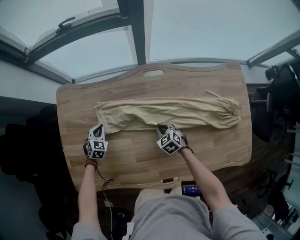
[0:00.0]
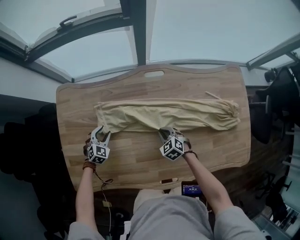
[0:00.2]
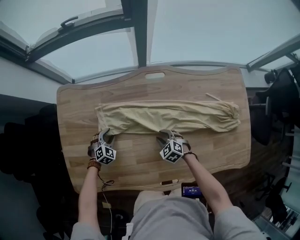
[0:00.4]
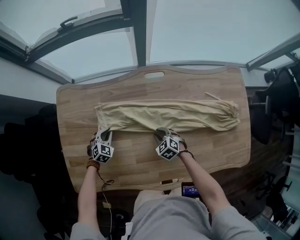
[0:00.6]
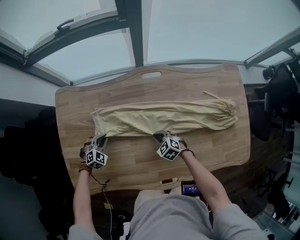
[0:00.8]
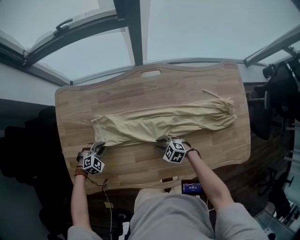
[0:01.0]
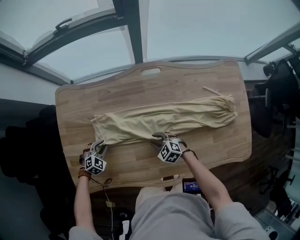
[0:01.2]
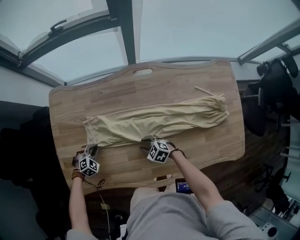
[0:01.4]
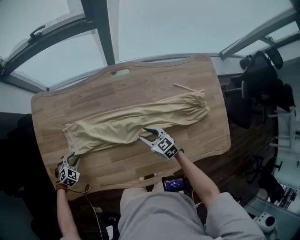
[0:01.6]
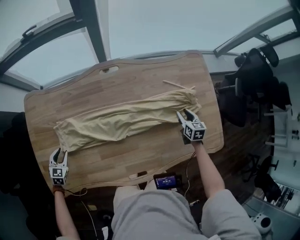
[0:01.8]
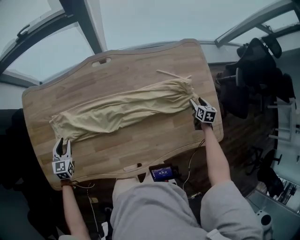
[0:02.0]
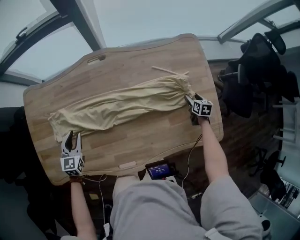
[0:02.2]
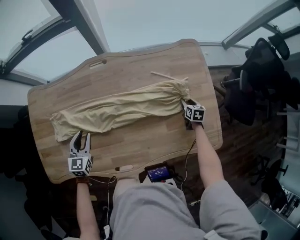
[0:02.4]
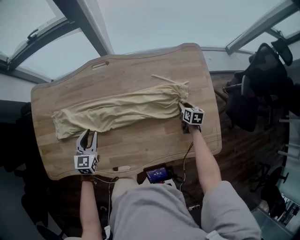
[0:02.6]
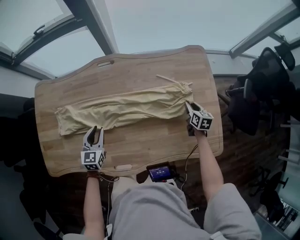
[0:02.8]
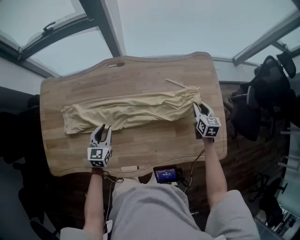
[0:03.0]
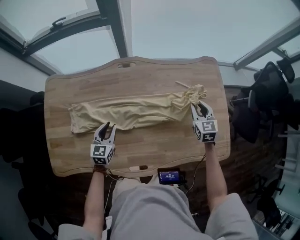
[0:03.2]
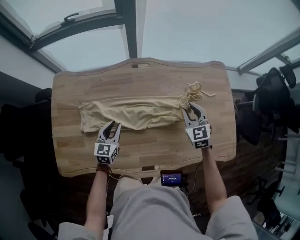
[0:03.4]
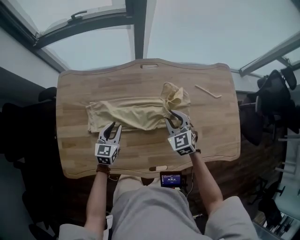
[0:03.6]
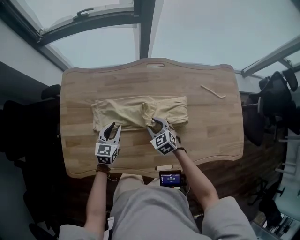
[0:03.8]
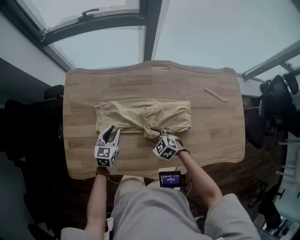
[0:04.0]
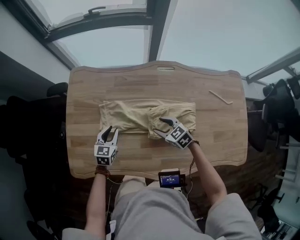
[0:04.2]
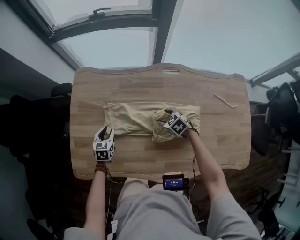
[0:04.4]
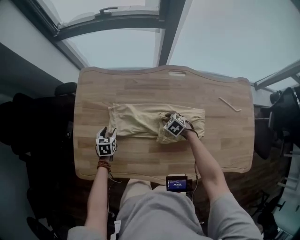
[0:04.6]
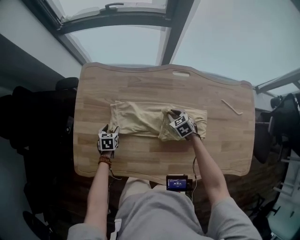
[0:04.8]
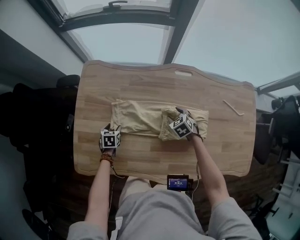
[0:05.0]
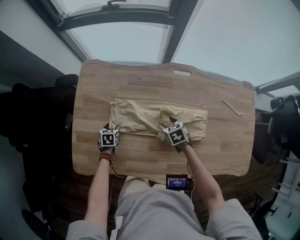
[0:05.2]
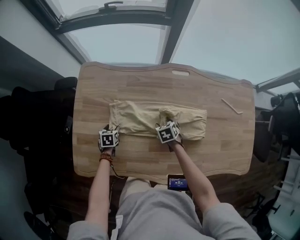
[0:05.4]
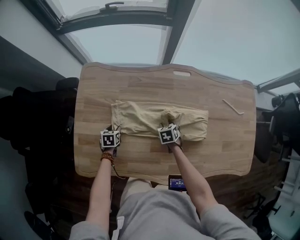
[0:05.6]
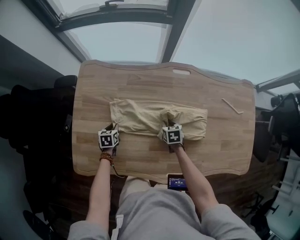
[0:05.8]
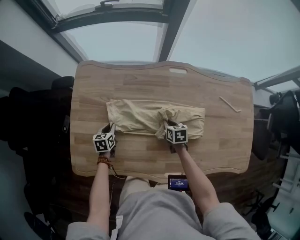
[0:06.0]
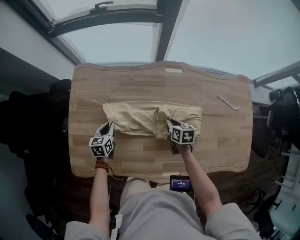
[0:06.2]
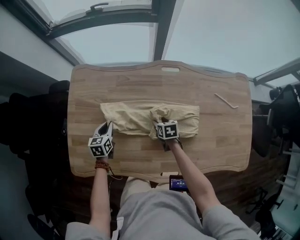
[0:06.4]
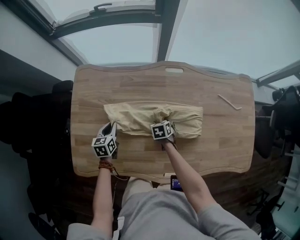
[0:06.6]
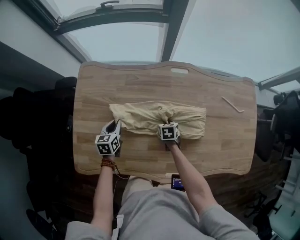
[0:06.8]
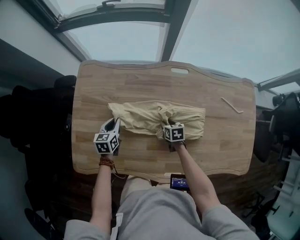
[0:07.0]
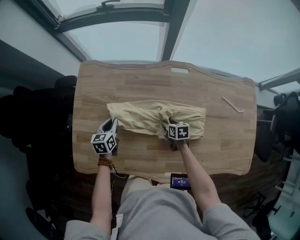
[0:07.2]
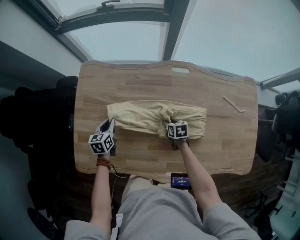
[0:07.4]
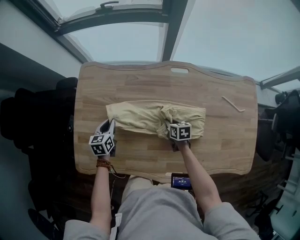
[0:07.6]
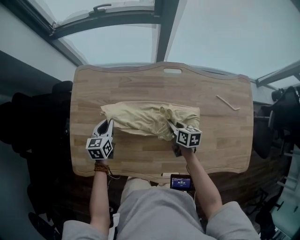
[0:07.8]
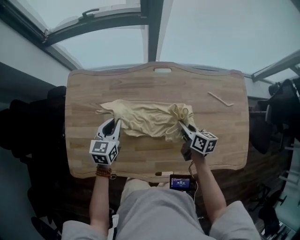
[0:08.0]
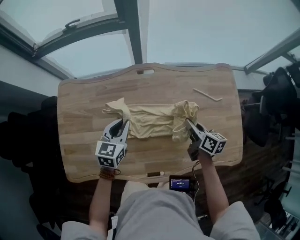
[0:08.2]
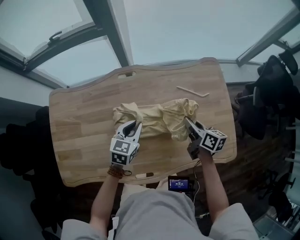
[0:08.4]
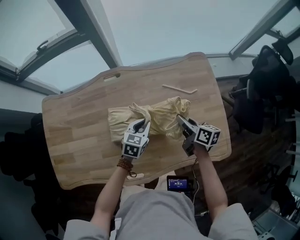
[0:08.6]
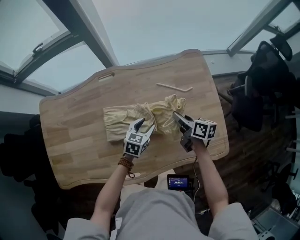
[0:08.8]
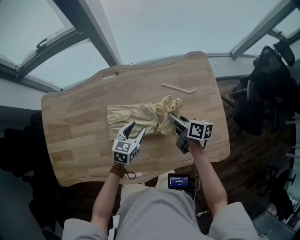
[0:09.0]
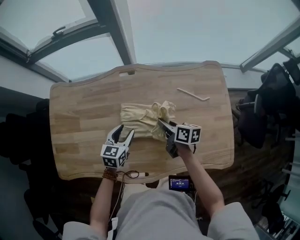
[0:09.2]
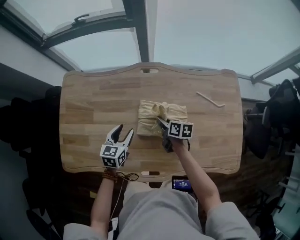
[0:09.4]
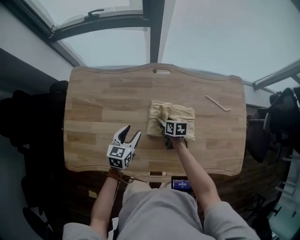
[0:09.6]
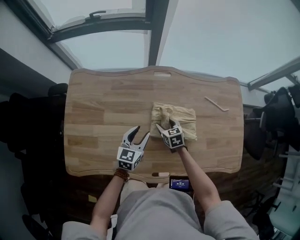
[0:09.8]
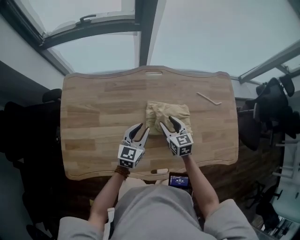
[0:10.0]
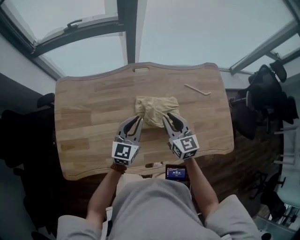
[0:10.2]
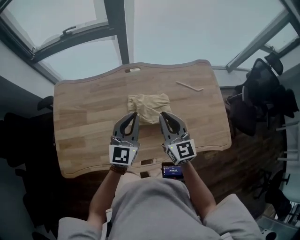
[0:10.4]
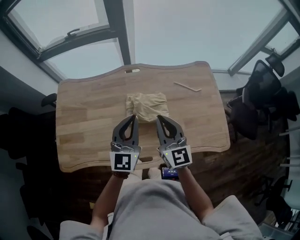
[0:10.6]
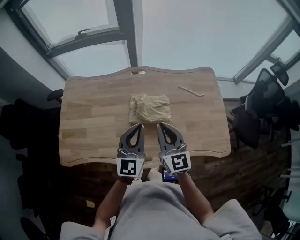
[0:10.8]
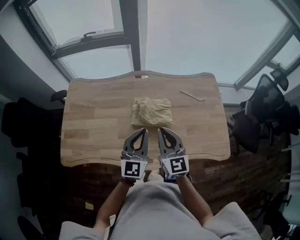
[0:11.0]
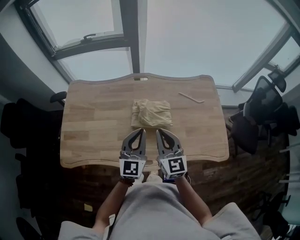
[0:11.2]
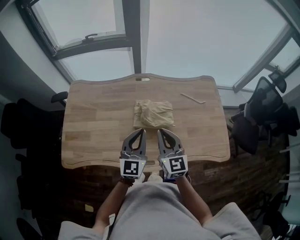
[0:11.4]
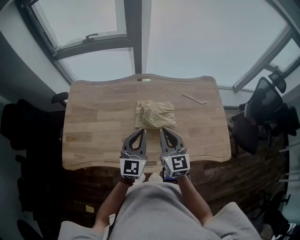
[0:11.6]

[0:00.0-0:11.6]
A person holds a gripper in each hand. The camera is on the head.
0:00.0 to 0:01.4: The right gripper shifts about 10 cm backward and to the left, rotates approximately 20 degrees, and opens its fingers, while the left gripper moves backward, about 10 cm, rotates about 30 degrees, and opens and closes again.
0:01.4 to 0:02.8: The right gripper swings up and down, roughly 10 cm each way, with 2 reversals, swivels about 70 degrees, and opens and closes again. The left gripper changes place by roughly 35 cm, and angles its fingers upward, by some 30 degrees.
0:02.8 to 0:04.4: The left gripper changes place by some 35 cm; the right gripper moves up and down over approximately 20 cm, changing direction 3 times, rolls counterclockwise, seen from behind, by approximately 50 degrees, and opens.
0:04.4 to 0:05.8: The left gripper shifts some 10 cm downward, and opens and closes again. The right gripper changes its angle by about 40 degrees, and closes.
0:05.8 to 0:07.2: The right gripper opens, then closes again; the left gripper is displaced upward by about 10 cm.
0:07.2 to 0:08.8: Both grippers are carried about 50 cm. The left gripper swivels some 40 degrees, and opens up. The right gripper turns by roughly 40 degrees, and closes its fingers.
0:08.8 to 0:10.2: The left gripper shifts roughly 30 cm to the left and upward, swivels about 30 degrees, and closes. The right gripper shifts some 30 cm to the left, rotates around the line of its fingers by about 50 degrees, counterclockwise from behind, and opens and closes again.
0:10.2 to 0:11.6: Both grippers travel together backward and upward, approximately 15 cm.

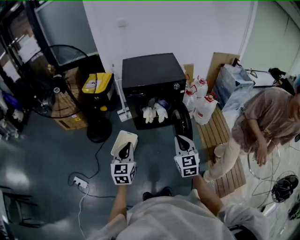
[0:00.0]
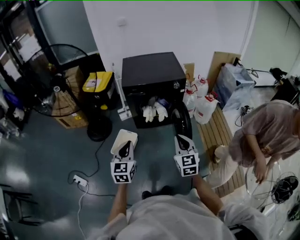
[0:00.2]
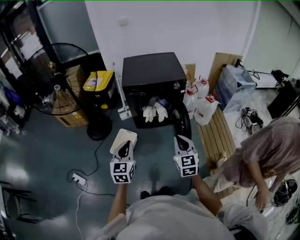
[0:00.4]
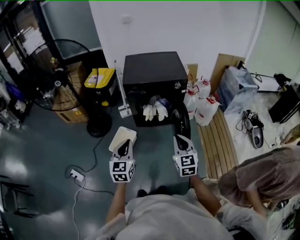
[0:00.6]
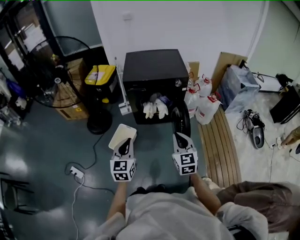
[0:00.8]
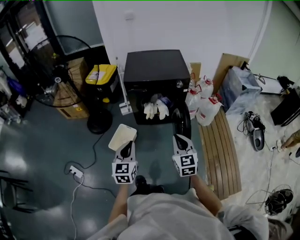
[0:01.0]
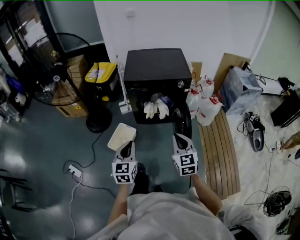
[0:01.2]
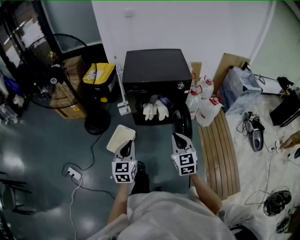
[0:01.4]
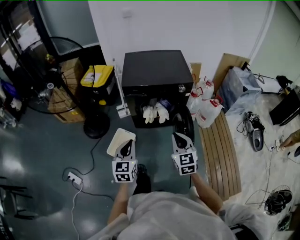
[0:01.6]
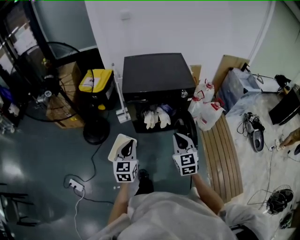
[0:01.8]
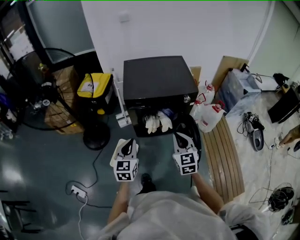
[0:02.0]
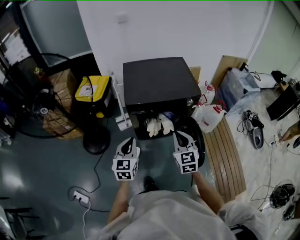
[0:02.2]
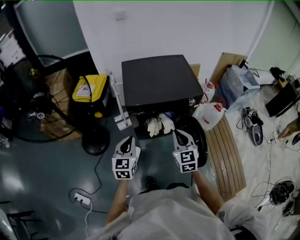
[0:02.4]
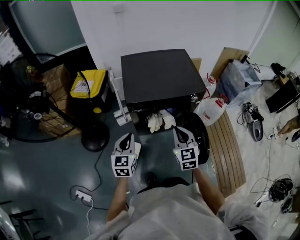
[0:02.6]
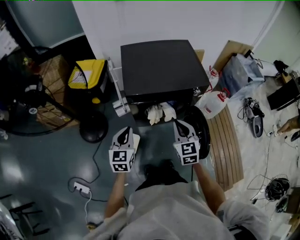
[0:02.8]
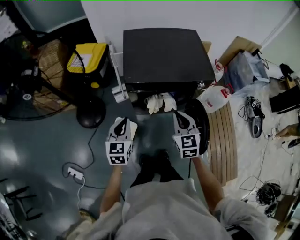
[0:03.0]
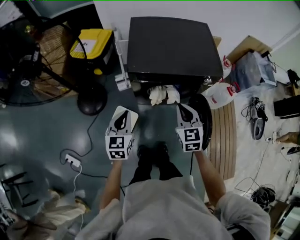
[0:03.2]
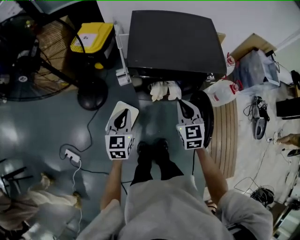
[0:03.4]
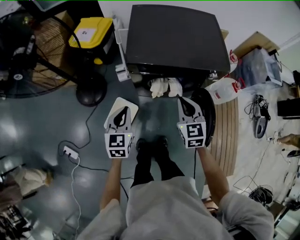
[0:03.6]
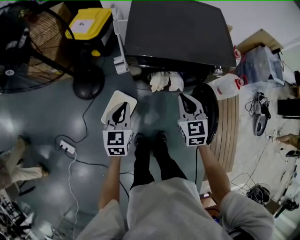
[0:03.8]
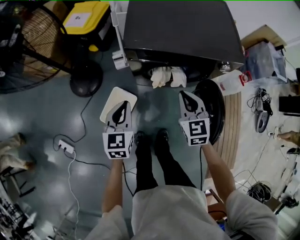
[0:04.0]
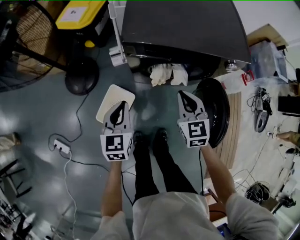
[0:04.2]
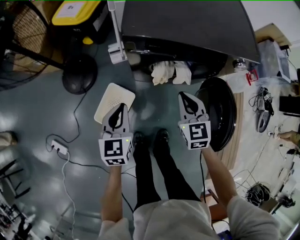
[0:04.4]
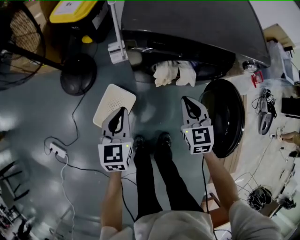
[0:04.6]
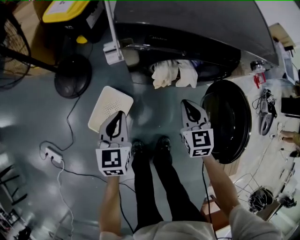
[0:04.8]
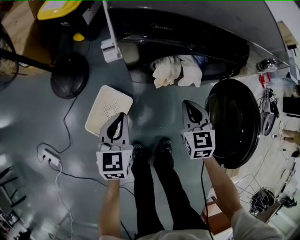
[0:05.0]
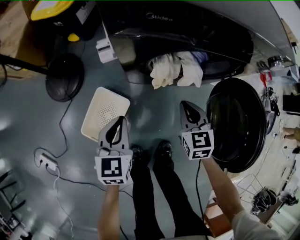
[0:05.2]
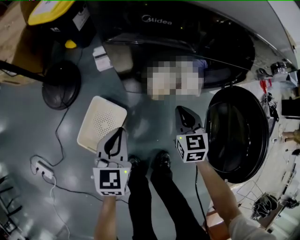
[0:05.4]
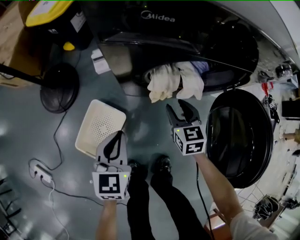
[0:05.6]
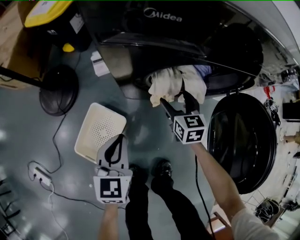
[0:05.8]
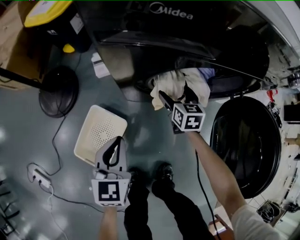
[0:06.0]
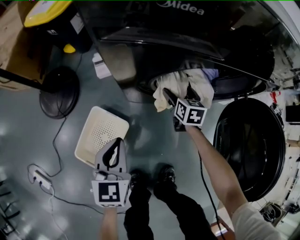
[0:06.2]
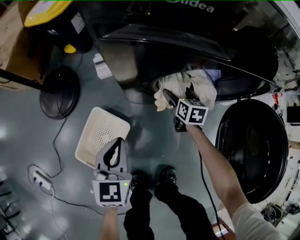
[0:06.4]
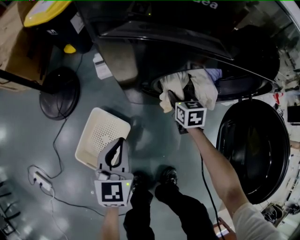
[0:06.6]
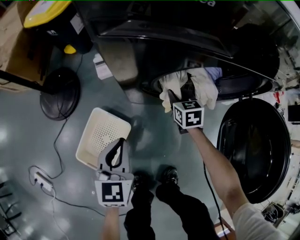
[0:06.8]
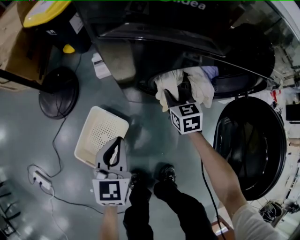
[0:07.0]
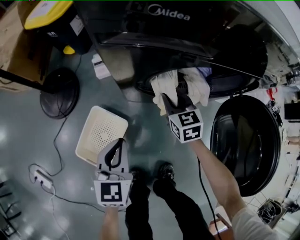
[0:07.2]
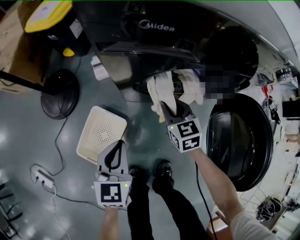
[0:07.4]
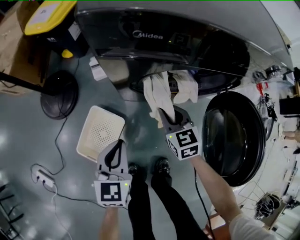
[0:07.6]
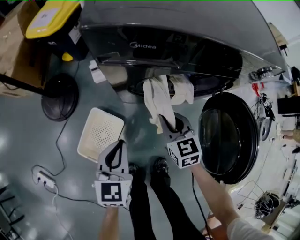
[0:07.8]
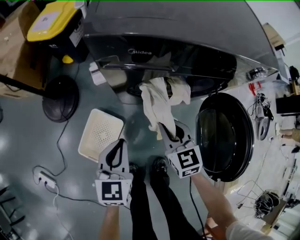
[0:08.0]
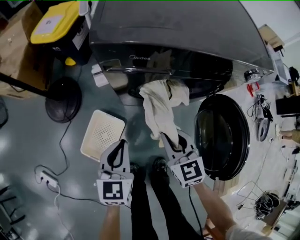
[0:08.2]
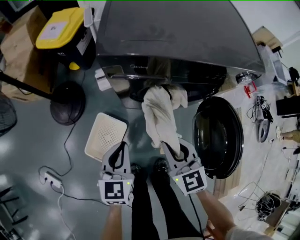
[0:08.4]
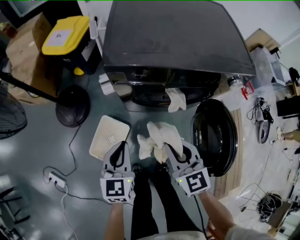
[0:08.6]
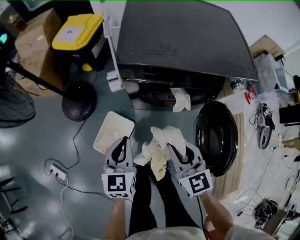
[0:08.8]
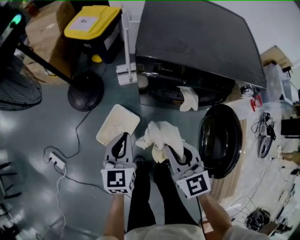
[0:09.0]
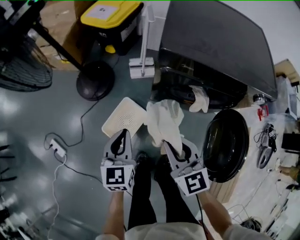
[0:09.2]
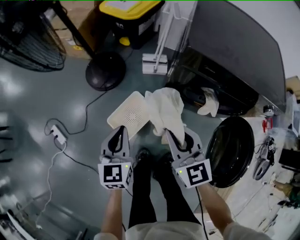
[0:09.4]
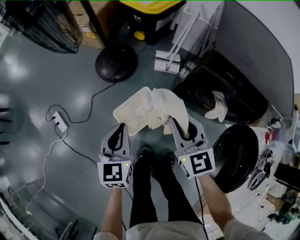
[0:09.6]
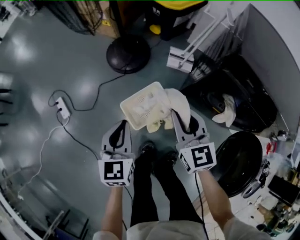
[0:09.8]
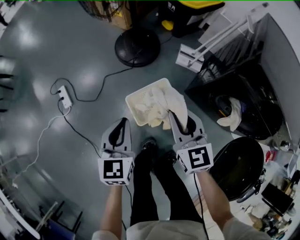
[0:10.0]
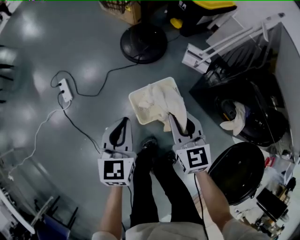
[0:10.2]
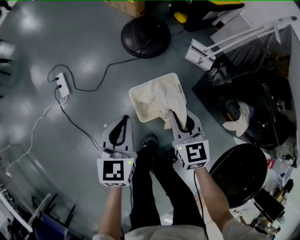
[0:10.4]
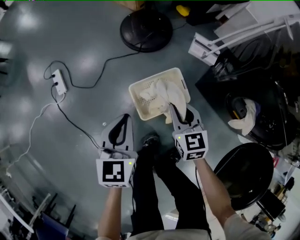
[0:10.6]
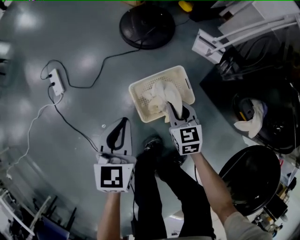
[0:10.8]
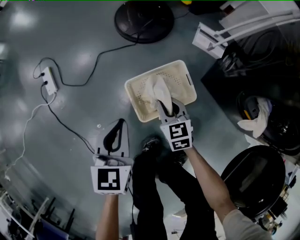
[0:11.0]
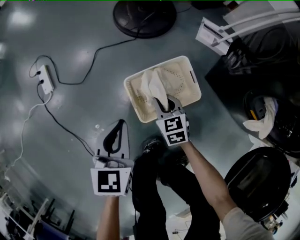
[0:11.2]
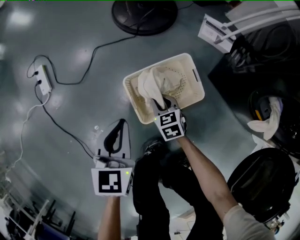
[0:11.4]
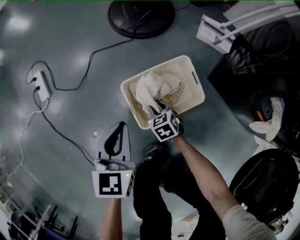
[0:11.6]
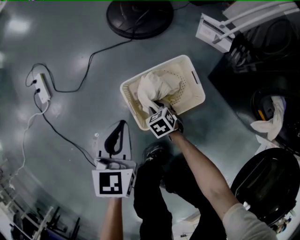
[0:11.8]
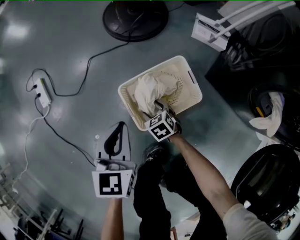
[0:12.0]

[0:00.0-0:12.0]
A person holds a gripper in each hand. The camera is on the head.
0:00.0 to 0:01.6: Both grippers travel together forward, roughly 10 cm.
0:01.6 to 0:03.0: The left gripper moves forward and to the left, roughly 30 cm, while the right gripper heads forward, covering approximately 25 cm.
0:03.0 to 0:04.4: Both grippers travel together downward, roughly 20 cm.
0:04.4 to 0:06.0: The right gripper travels downward and forward by some 40 cm, changes its angle by some 20 degrees, and opens up. Meanwhile the left gripper heads downward, covering some 25 cm.
0:06.0 to 0:07.6: The left gripper moves upward, some 5 cm. The right gripper is displaced upward and backward by about 15 cm, and closes its fingers.
0:07.6 to 0:09.0: The right gripper moves upward and backward, approximately 30 cm. The left gripper shifts some 20 cm upward.
0:09.0 to 0:10.4: The left gripper ends up approximately 30 cm from where it was, and turns by roughly 40 degrees. Meanwhile the right gripper moves approximately 35 cm, and swivels about 30 degrees.
0:10.4 to 0:12.0: The right gripper shifts some 50 cm downward, angles its fingers downward, by approximately 30 degrees, and opens up, while the left gripper moves downward, roughly 25 cm.
